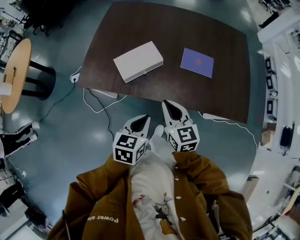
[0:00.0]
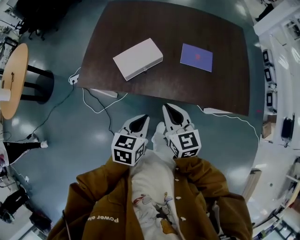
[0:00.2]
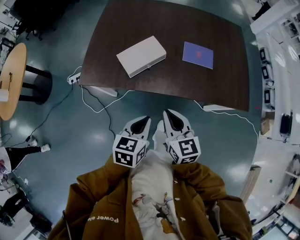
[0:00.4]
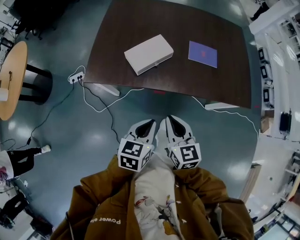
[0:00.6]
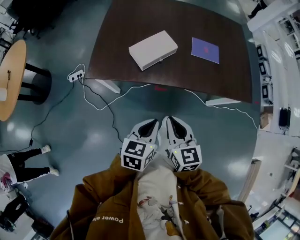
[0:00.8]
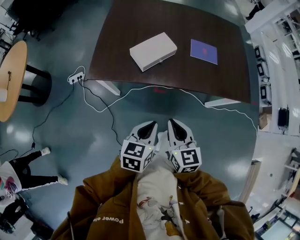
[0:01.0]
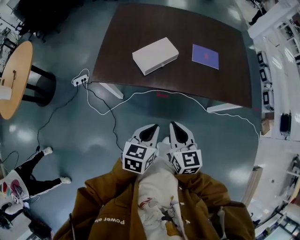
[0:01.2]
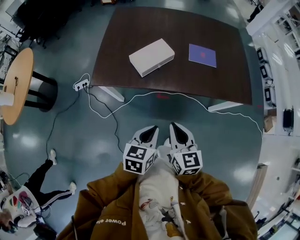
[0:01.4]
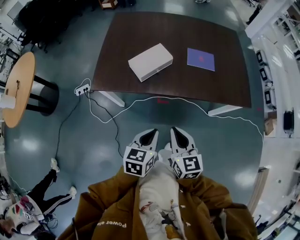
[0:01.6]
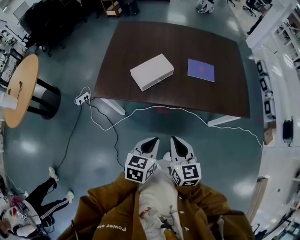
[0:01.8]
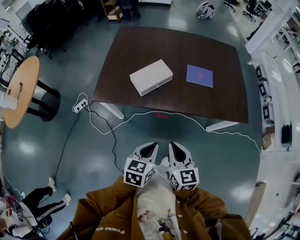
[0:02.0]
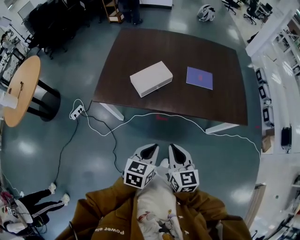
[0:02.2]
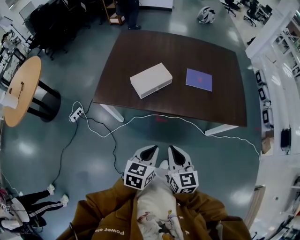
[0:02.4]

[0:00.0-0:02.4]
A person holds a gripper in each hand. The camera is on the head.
0:00.0 to 0:01.2: Both grippers move backward and to the left, some 20 cm.
0:01.2 to 0:02.4: The grippers both shift to the right by approximately 5 cm.

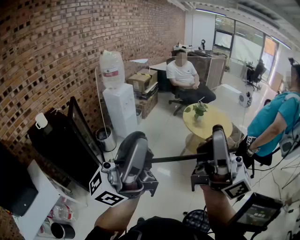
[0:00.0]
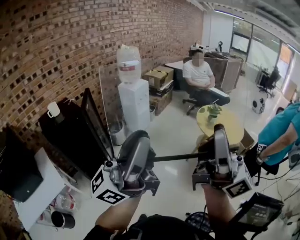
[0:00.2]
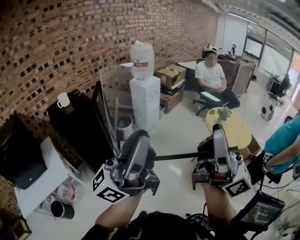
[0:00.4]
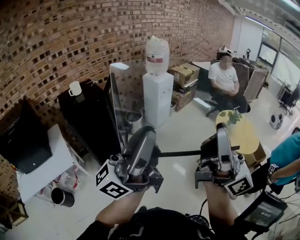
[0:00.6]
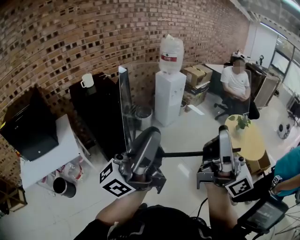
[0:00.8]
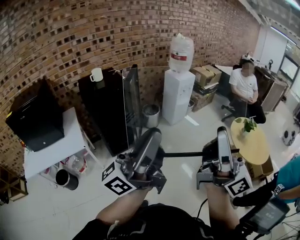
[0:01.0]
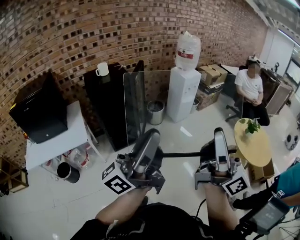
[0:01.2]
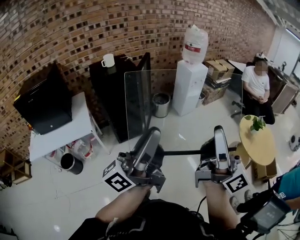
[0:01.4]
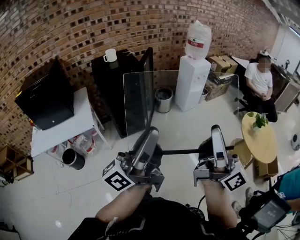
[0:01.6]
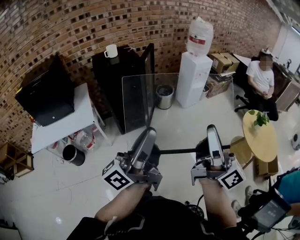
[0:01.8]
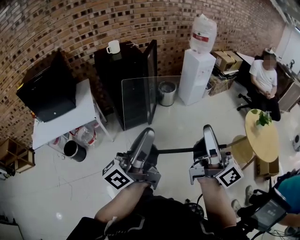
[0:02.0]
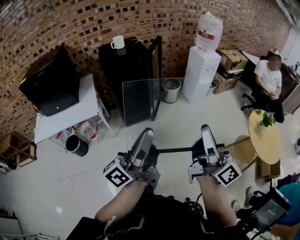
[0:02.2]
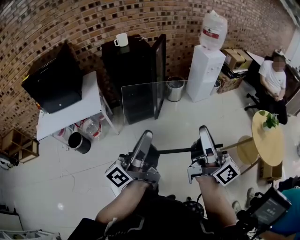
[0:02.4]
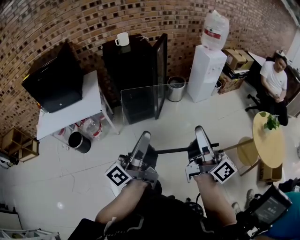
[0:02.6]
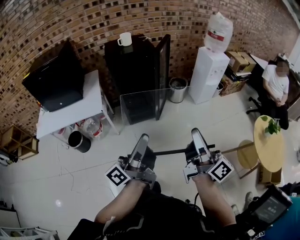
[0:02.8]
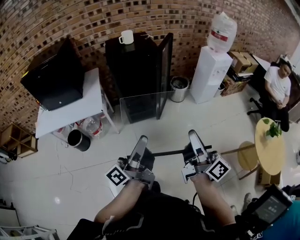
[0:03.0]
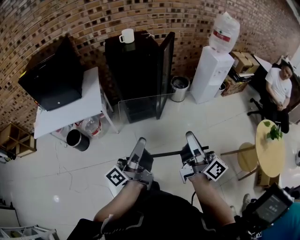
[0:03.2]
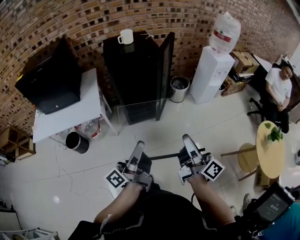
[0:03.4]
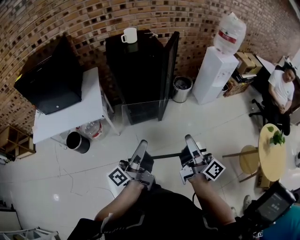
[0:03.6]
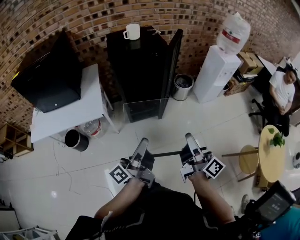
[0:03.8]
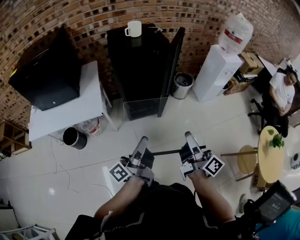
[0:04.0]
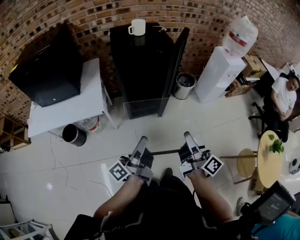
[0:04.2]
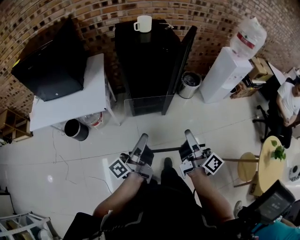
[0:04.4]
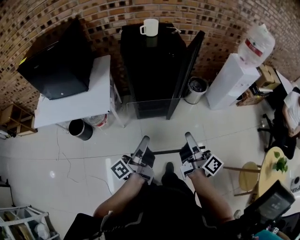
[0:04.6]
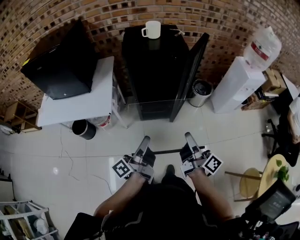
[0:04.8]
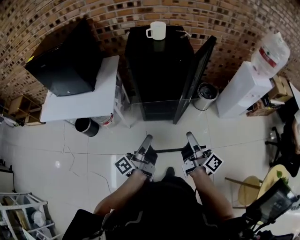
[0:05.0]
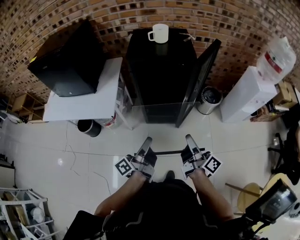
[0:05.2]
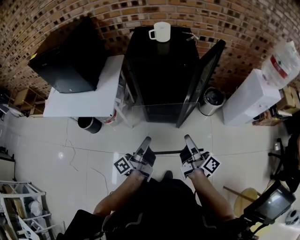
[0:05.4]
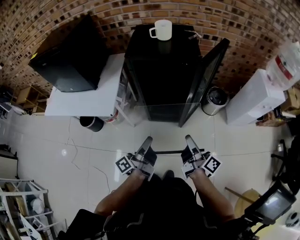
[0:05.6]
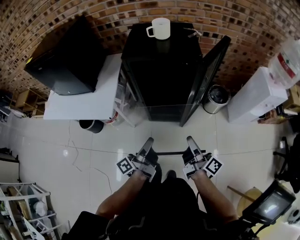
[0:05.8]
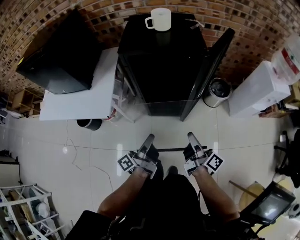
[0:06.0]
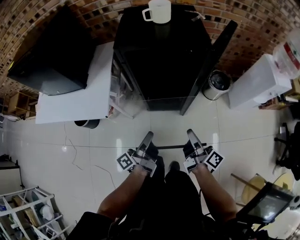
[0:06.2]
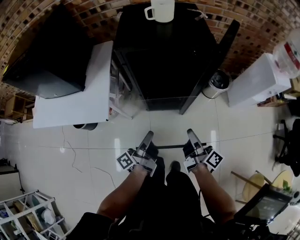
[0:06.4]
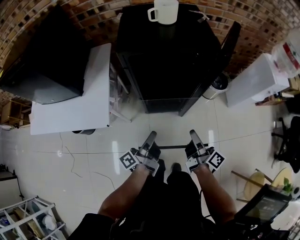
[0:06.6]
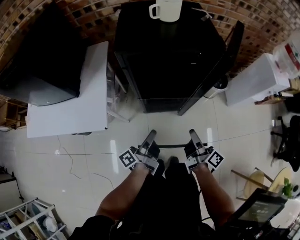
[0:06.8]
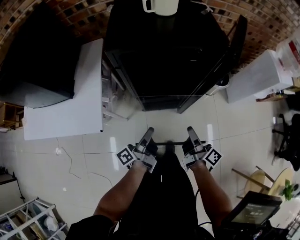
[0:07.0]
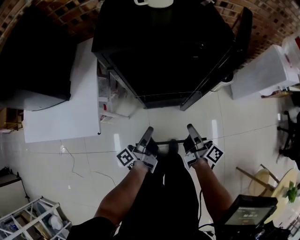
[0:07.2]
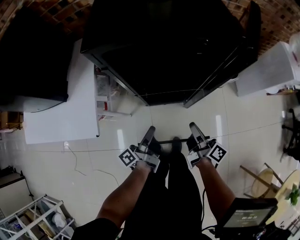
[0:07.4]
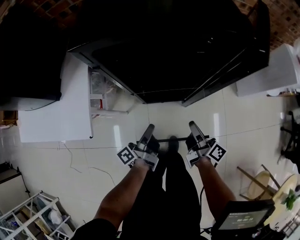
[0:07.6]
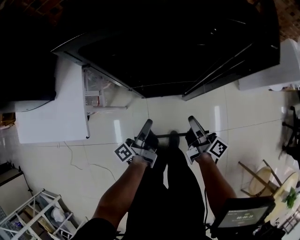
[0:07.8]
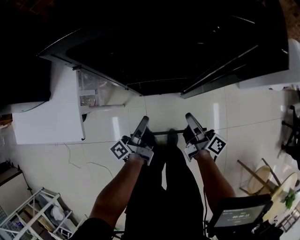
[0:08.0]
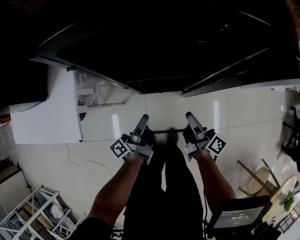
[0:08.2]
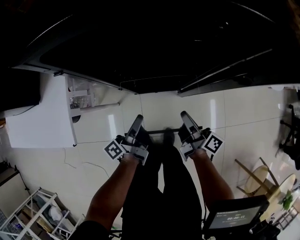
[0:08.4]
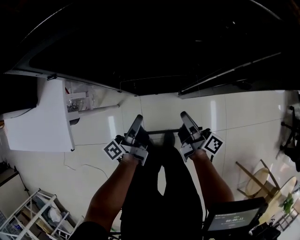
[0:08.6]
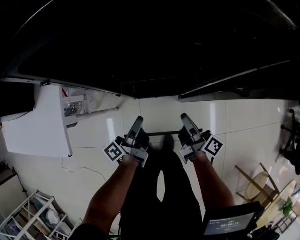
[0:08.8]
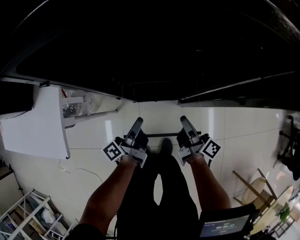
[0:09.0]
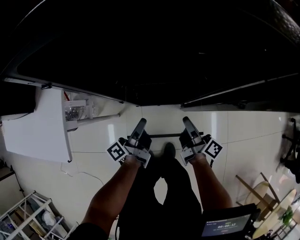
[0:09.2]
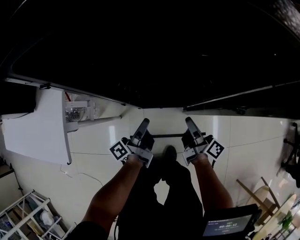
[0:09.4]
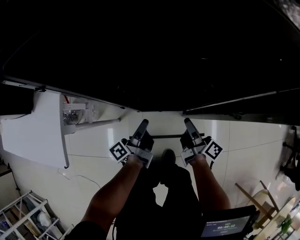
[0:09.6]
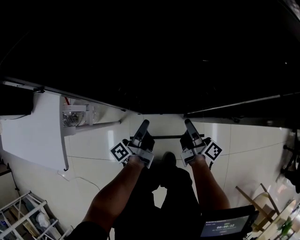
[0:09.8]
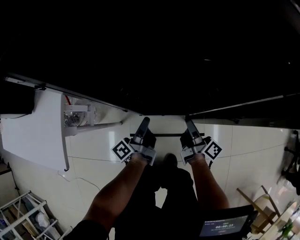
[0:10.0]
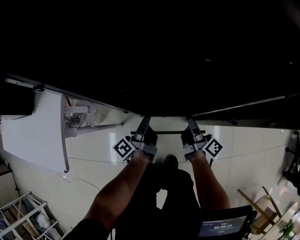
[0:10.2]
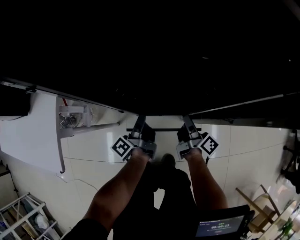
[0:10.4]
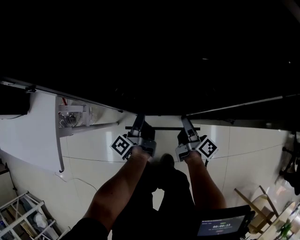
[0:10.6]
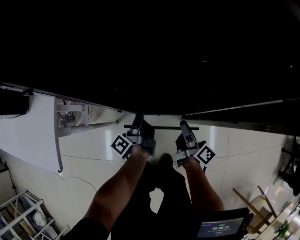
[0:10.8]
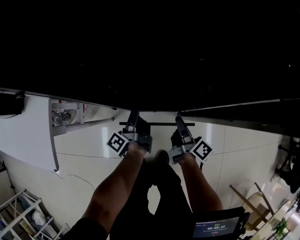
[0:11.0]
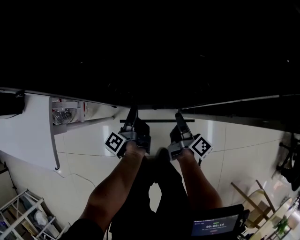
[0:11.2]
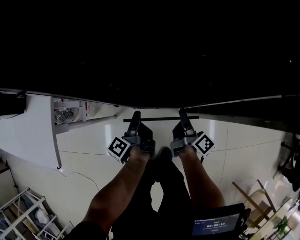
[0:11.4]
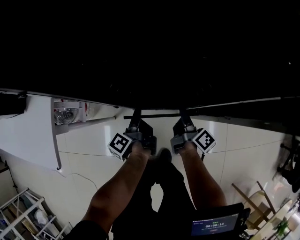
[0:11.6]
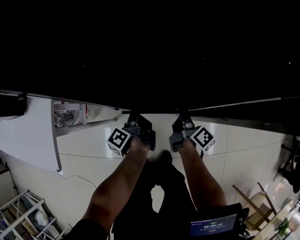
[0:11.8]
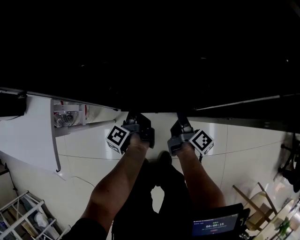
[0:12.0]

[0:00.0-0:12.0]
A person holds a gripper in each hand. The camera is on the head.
0:00.0 to 0:01.6: The right gripper heads downward, covering about 20 cm, and swivels roughly 30 degrees.
0:01.6 to 0:03.0: The right gripper moves downward, approximately 15 cm, and changes its angle by about 30 degrees.
0:03.0 to 0:04.4: The right gripper moves approximately 20 cm.
0:04.4 to 0:06.0: The right gripper moves some 25 cm.
0:06.0 to 0:07.6: The right gripper goes approximately 20 cm downward.
0:07.6 to 0:09.0: The right gripper goes roughly 10 cm downward.
0:09.0 to 0:10.4: The right gripper changes place by about 10 cm.
0:10.4 to 0:12.0: The right gripper opens and closes again.

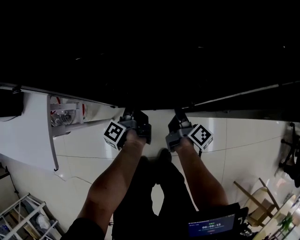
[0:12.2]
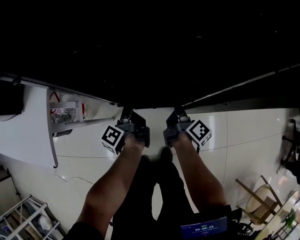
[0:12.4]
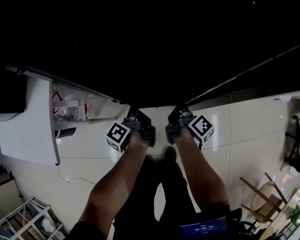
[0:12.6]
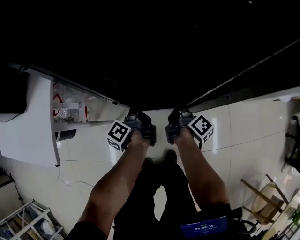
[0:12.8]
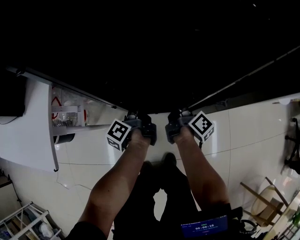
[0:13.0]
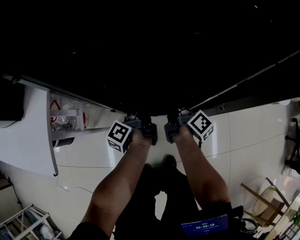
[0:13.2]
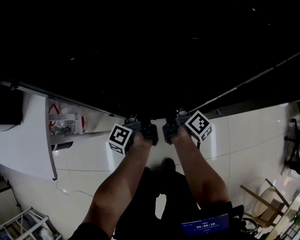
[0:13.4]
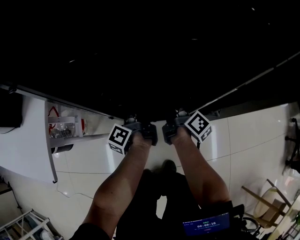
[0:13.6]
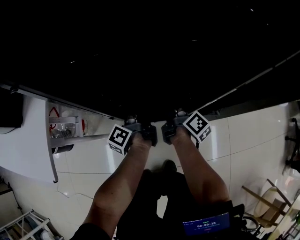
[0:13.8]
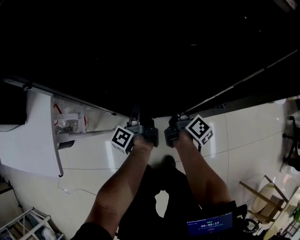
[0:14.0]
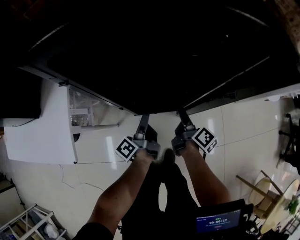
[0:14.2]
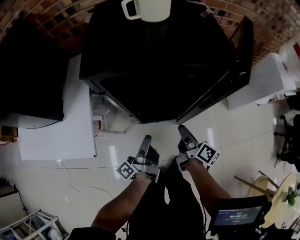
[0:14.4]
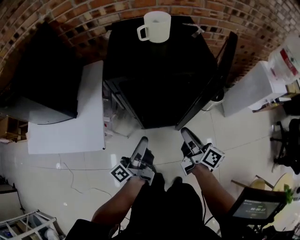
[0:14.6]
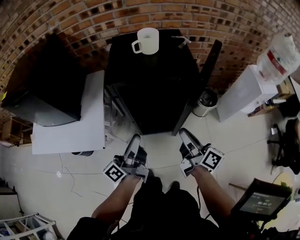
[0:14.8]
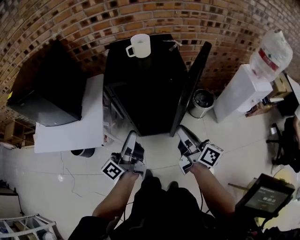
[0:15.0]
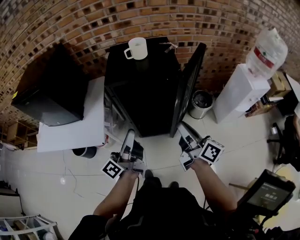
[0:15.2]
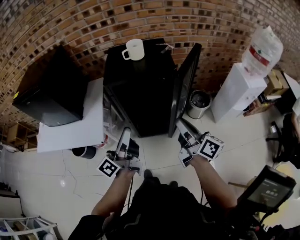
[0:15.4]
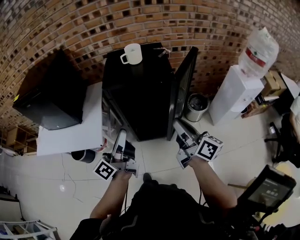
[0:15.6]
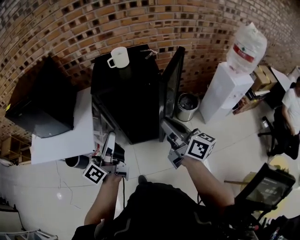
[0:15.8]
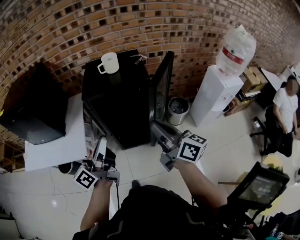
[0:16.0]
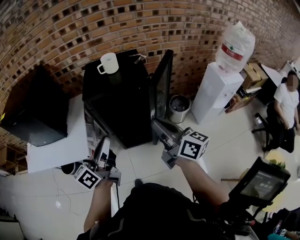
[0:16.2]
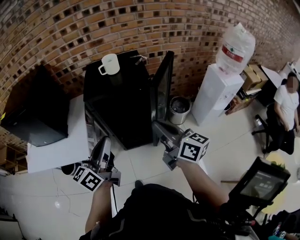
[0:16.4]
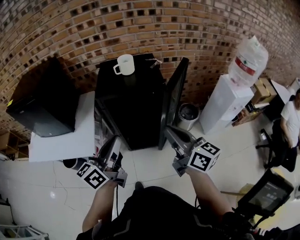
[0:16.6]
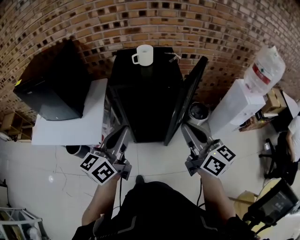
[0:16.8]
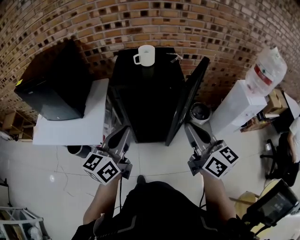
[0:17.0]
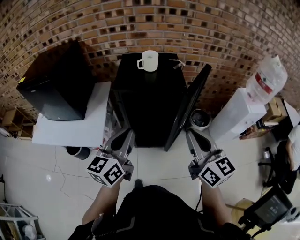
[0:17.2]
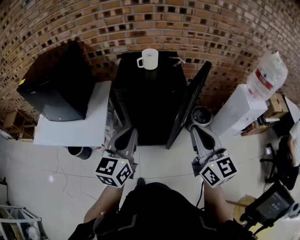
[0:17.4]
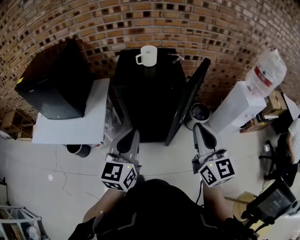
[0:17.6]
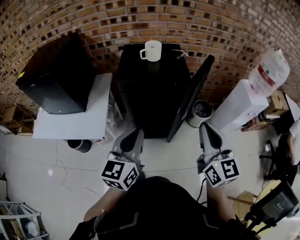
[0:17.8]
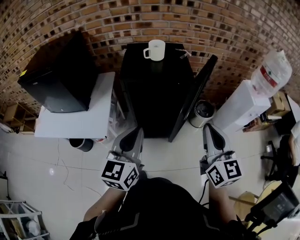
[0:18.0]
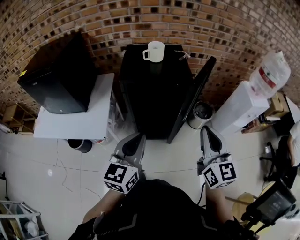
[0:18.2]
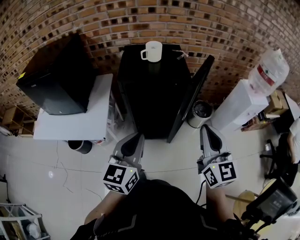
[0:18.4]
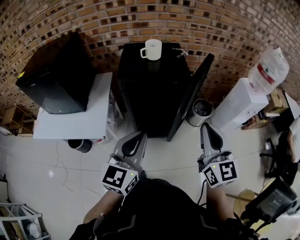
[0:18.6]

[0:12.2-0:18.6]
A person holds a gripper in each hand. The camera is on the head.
0:12.2 to 0:13.8: The right gripper moves roughly 5 cm.
0:13.8 to 0:15.4: The right gripper is displaced upward by approximately 50 cm, and turns by about 40 degrees.
0:15.4 to 0:17.0: The right gripper travels upward by about 10 cm, and turns by about 30 degrees.
0:17.0 to 0:18.6: The right gripper rotates some 30 degrees.

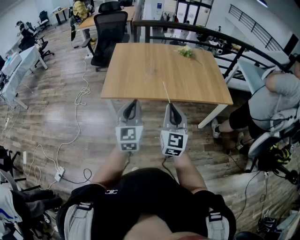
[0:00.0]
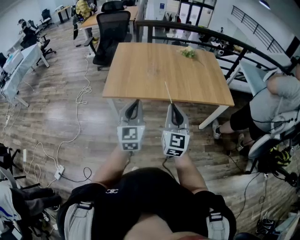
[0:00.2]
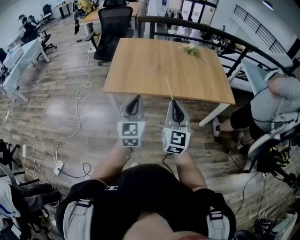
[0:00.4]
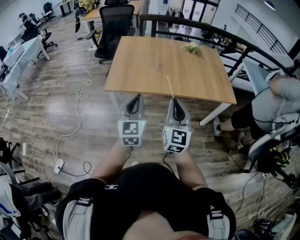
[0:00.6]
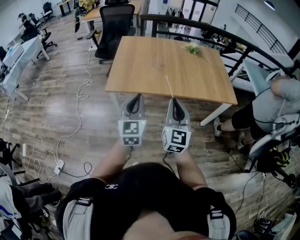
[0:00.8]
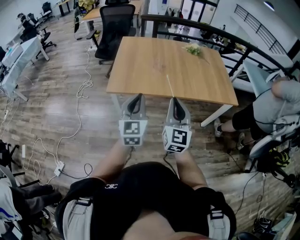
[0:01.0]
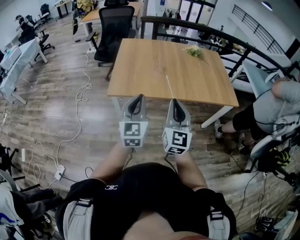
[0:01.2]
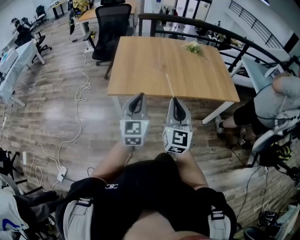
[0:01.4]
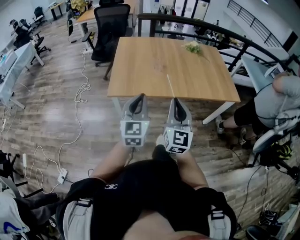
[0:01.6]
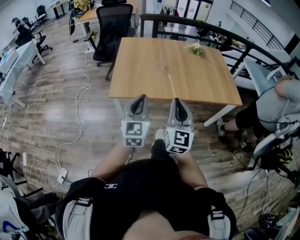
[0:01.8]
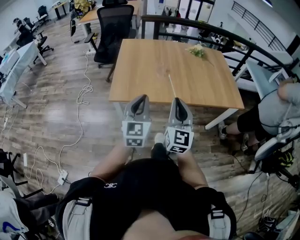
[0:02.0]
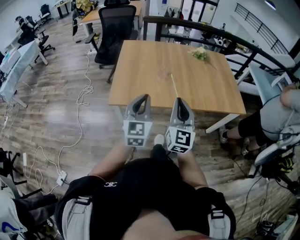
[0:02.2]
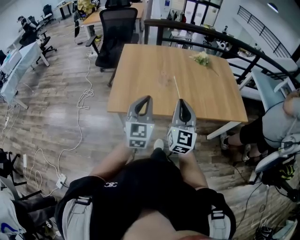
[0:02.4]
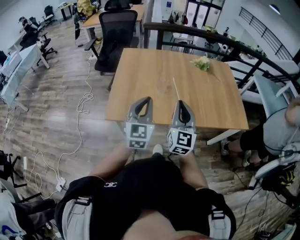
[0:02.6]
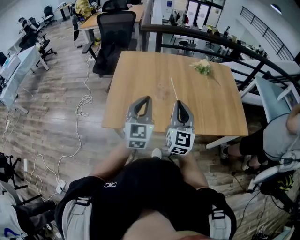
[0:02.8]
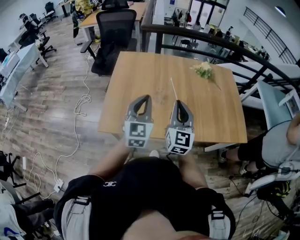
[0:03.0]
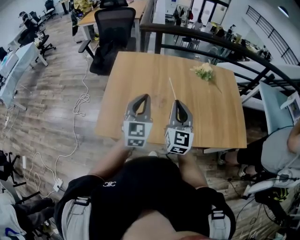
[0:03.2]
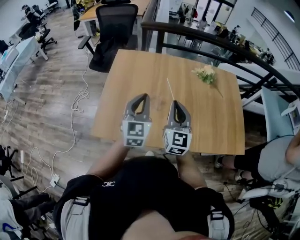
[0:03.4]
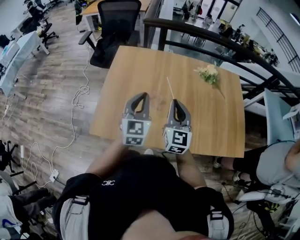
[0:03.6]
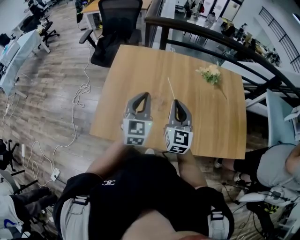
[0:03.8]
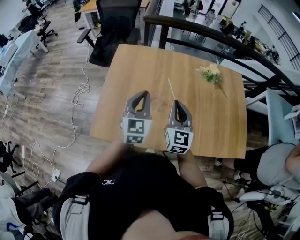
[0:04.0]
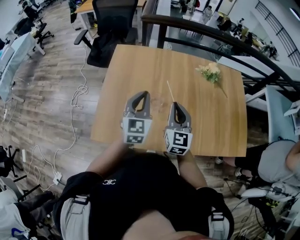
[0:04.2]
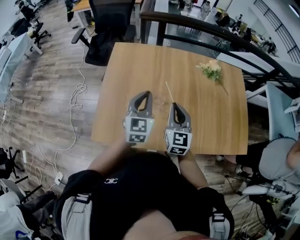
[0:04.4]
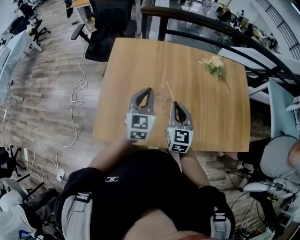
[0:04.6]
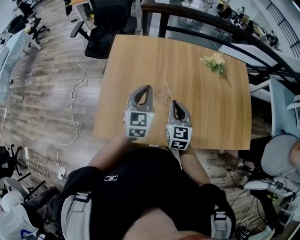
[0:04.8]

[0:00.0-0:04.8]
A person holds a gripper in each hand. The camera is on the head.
0:00.0 to 0:01.6: The grippers both shift to the left by some 10 cm.
0:01.6 to 0:03.2: The two grippers go approximately 35 cm forward.
0:03.2 to 0:04.8: The right gripper travels downward and forward by about 15 cm, and rotates some 20 degrees. Meanwhile the left gripper heads forward and downward, covering roughly 15 cm.
